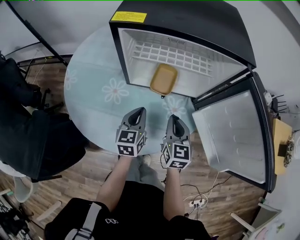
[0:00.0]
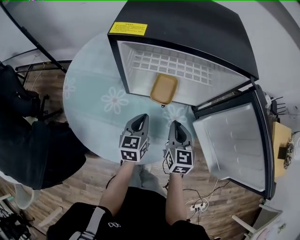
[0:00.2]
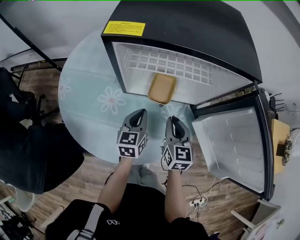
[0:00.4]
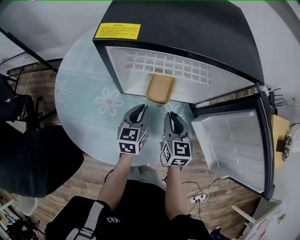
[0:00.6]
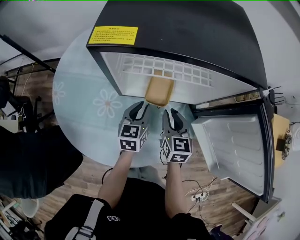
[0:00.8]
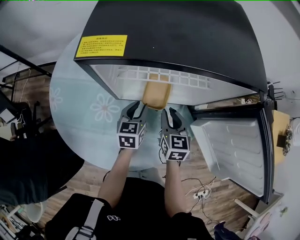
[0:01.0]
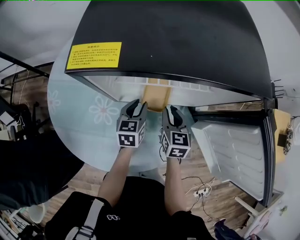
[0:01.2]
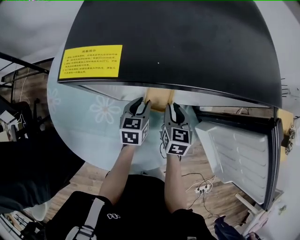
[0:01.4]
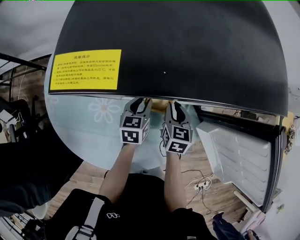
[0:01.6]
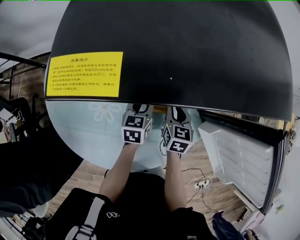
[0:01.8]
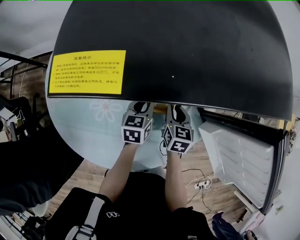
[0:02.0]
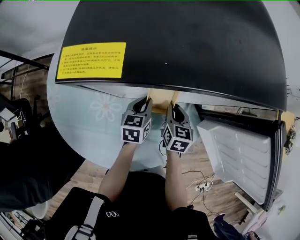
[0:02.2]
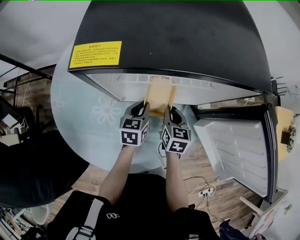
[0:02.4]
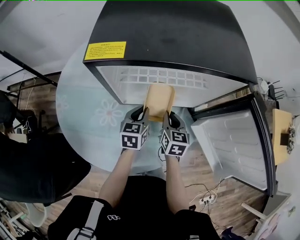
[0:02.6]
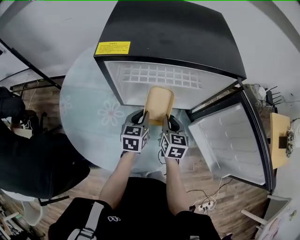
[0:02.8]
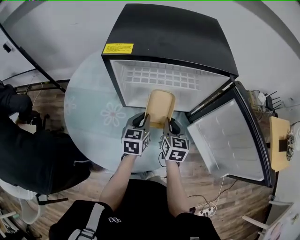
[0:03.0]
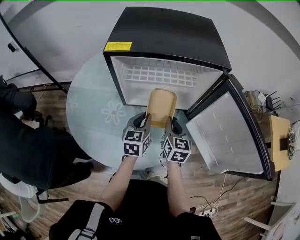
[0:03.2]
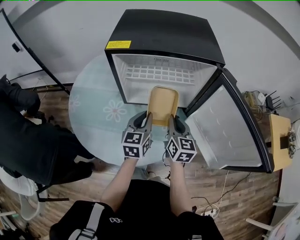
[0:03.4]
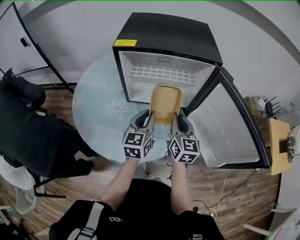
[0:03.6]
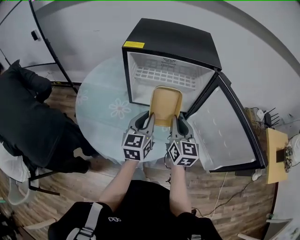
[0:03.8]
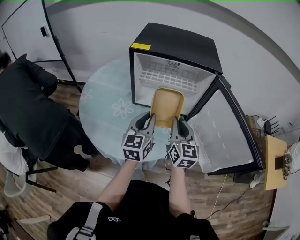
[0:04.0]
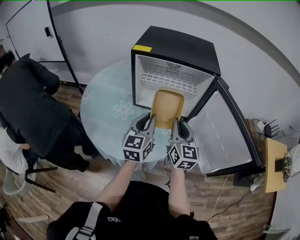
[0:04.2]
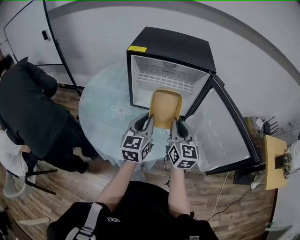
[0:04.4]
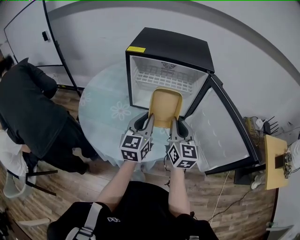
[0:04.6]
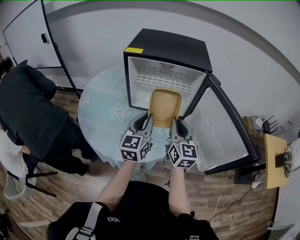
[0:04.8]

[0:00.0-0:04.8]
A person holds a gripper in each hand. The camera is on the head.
0:00.0 to 0:01.6: Both grippers move forward and downward, some 15 cm. The left gripper opens up; the right gripper opens its fingers.
0:01.6 to 0:03.2: Both grippers travel together upward and backward, some 15 cm. The left gripper closes up.
0:03.2 to 0:04.8: Both grippers move upward and backward, approximately 20 cm. The right gripper turns by some 20 degrees. Meanwhile the left gripper changes its angle by about 20 degrees.

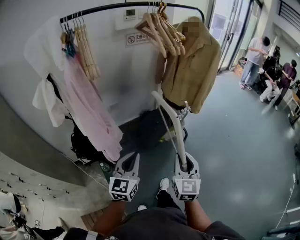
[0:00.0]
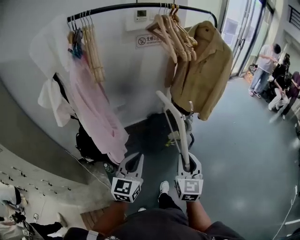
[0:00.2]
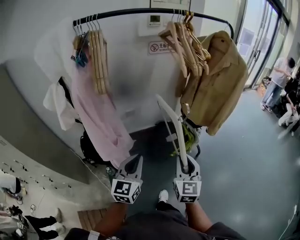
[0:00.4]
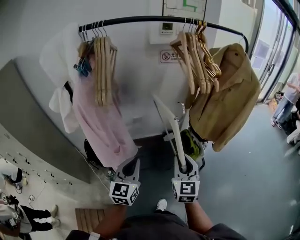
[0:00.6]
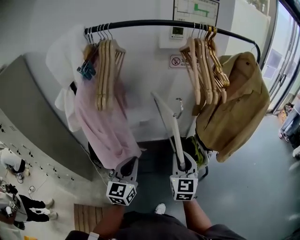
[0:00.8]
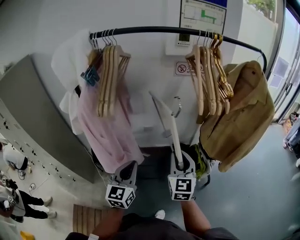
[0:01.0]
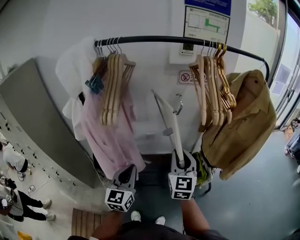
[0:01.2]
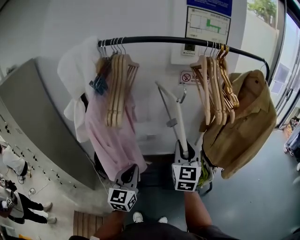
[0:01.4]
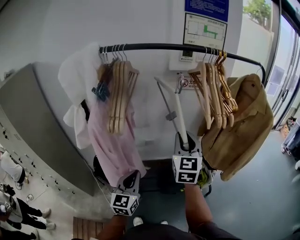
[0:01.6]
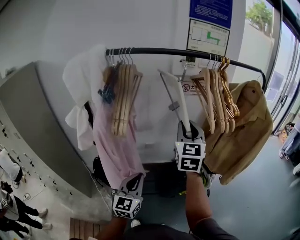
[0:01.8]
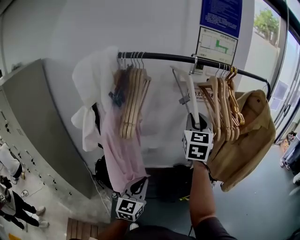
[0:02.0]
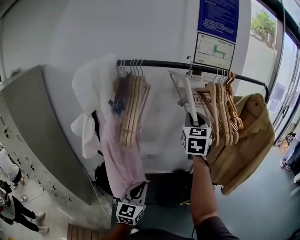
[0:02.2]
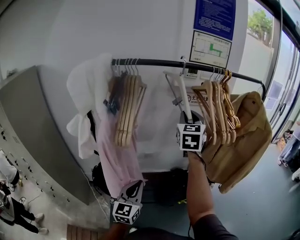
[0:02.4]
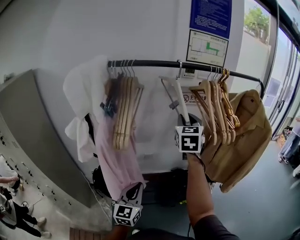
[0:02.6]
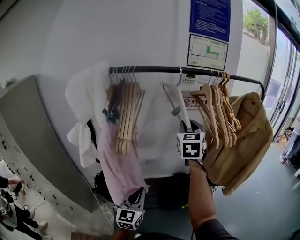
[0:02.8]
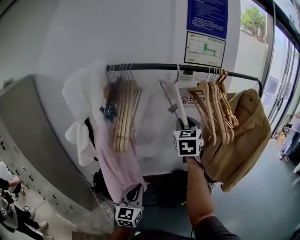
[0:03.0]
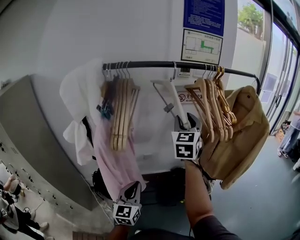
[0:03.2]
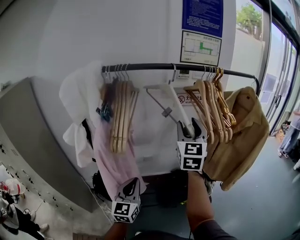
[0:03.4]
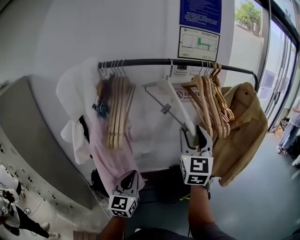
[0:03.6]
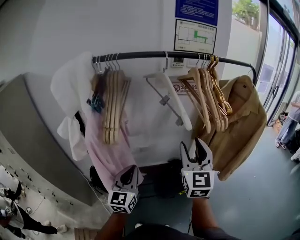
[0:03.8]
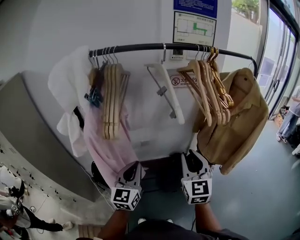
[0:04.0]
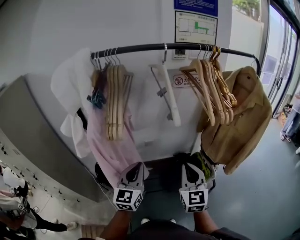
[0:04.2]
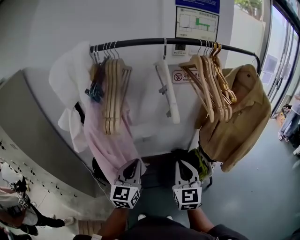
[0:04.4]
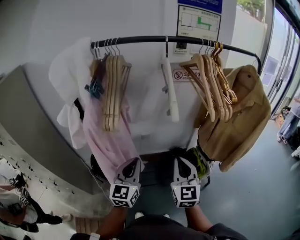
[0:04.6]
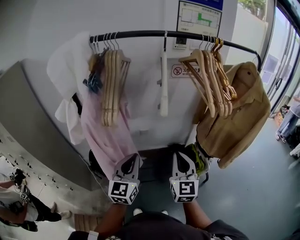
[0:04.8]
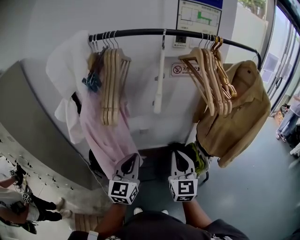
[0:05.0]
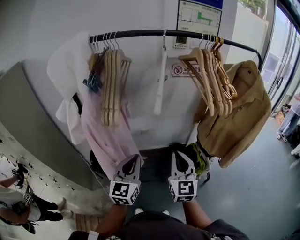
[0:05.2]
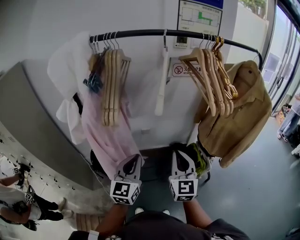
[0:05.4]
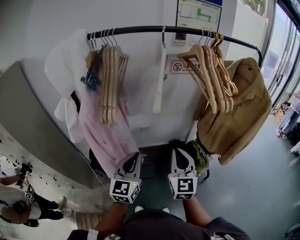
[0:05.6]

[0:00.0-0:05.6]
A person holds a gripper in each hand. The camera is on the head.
0:00.0 to 0:01.4: The right gripper shifts by roughly 35 cm, and turns by about 20 degrees, while the left gripper ends up roughly 20 cm from where it was, and rotates roughly 30 degrees.
0:01.4 to 0:02.8: The right gripper shifts roughly 20 cm forward and upward.
0:02.8 to 0:04.2: The left gripper shifts by roughly 5 cm. The right gripper moves backward and downward, about 25 cm, and opens and closes again.
0:04.2 to 0:05.6: There are only small adjustments of the grippers.

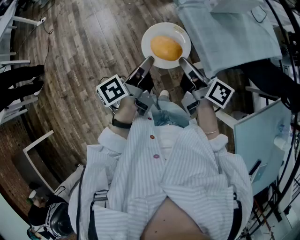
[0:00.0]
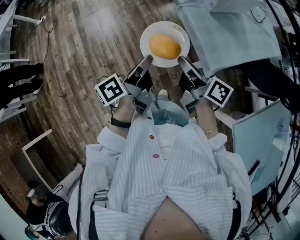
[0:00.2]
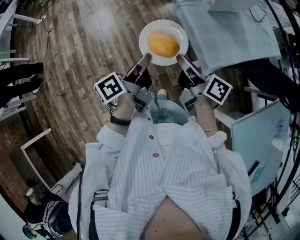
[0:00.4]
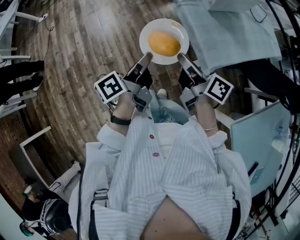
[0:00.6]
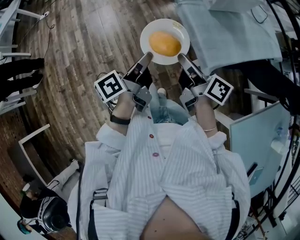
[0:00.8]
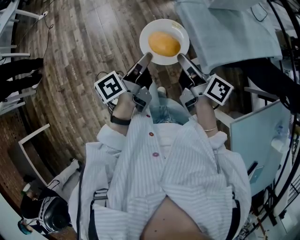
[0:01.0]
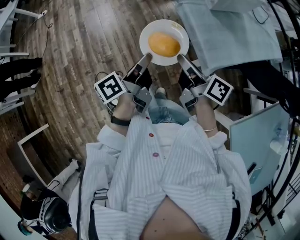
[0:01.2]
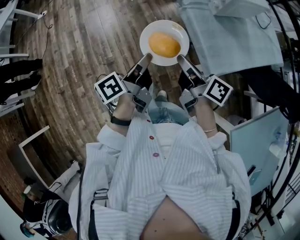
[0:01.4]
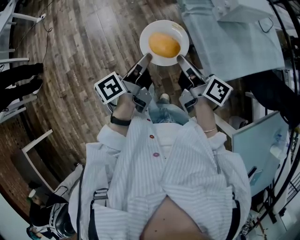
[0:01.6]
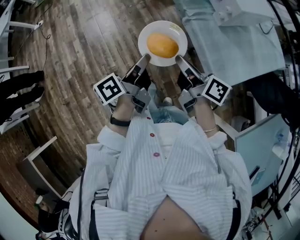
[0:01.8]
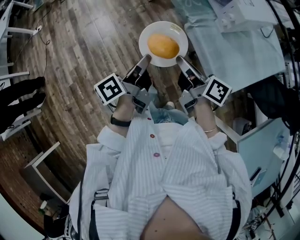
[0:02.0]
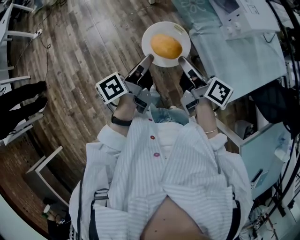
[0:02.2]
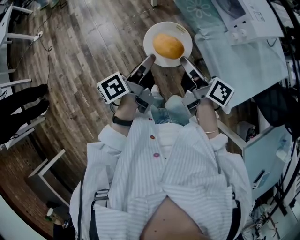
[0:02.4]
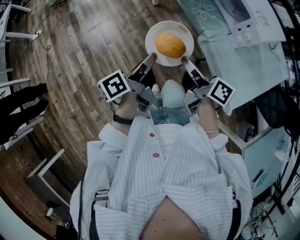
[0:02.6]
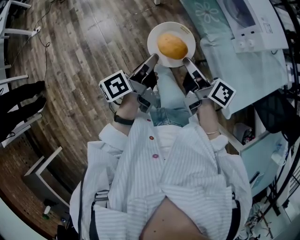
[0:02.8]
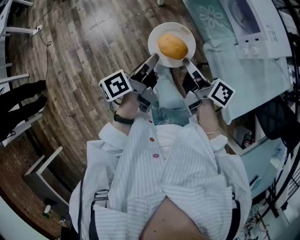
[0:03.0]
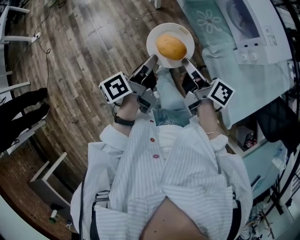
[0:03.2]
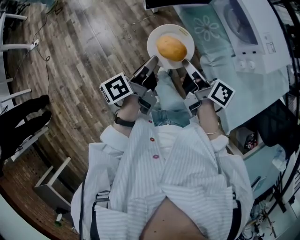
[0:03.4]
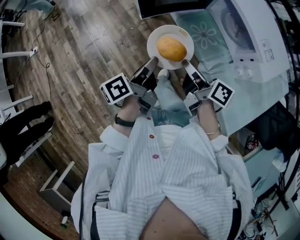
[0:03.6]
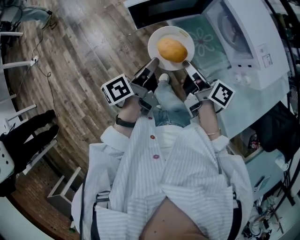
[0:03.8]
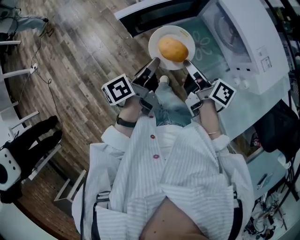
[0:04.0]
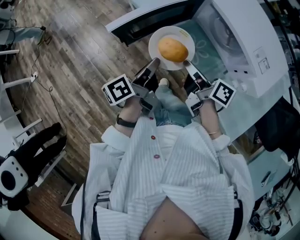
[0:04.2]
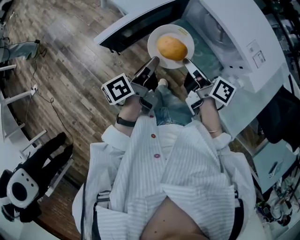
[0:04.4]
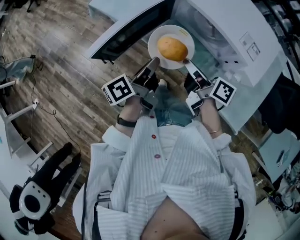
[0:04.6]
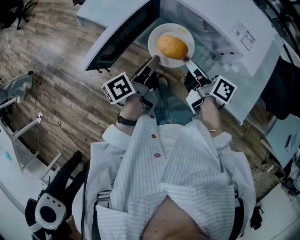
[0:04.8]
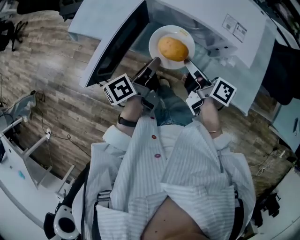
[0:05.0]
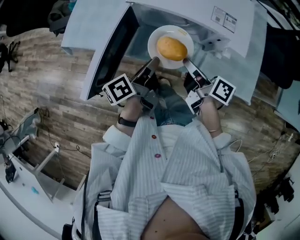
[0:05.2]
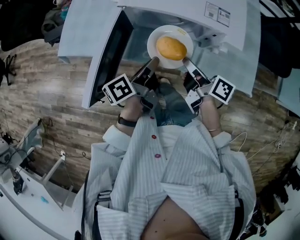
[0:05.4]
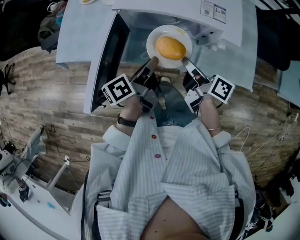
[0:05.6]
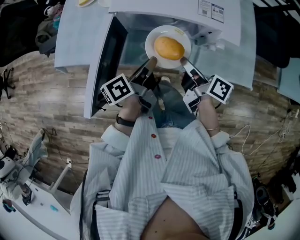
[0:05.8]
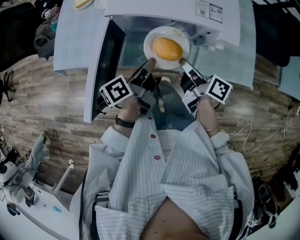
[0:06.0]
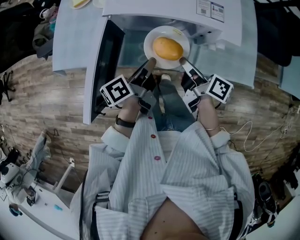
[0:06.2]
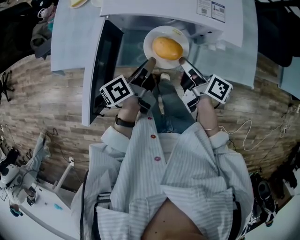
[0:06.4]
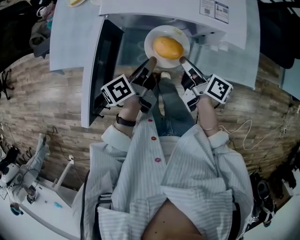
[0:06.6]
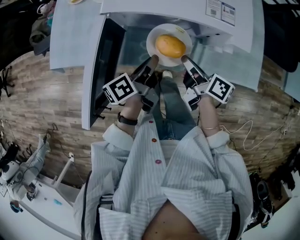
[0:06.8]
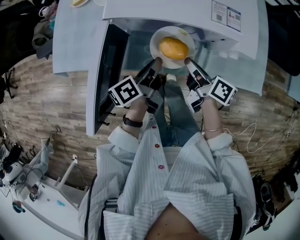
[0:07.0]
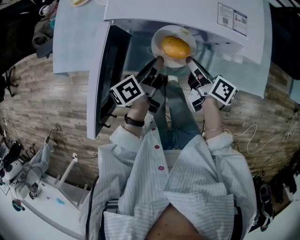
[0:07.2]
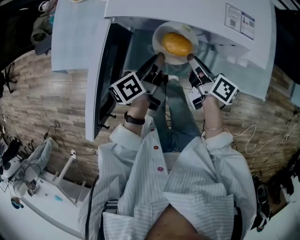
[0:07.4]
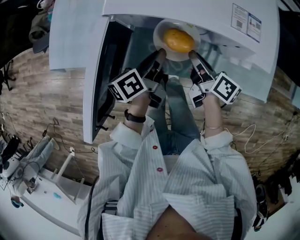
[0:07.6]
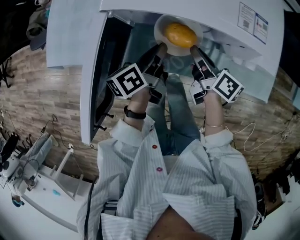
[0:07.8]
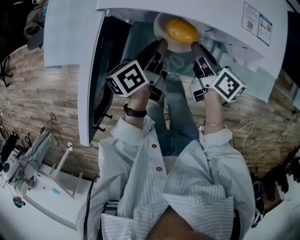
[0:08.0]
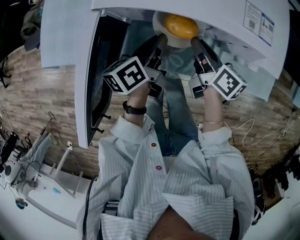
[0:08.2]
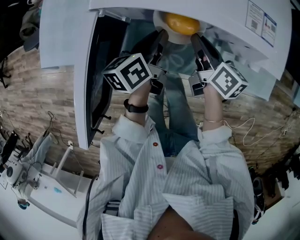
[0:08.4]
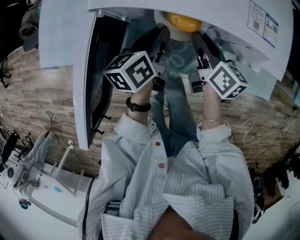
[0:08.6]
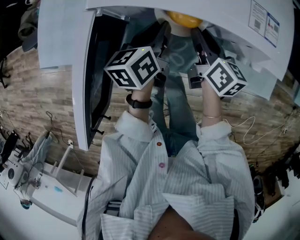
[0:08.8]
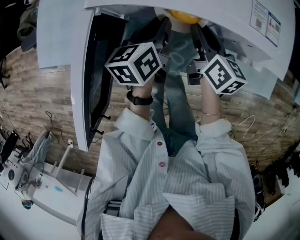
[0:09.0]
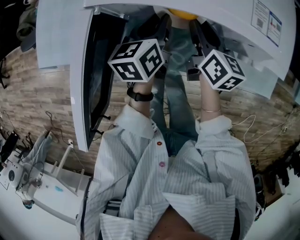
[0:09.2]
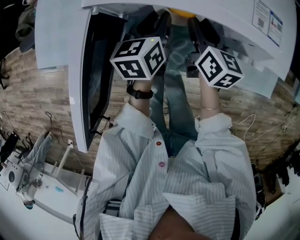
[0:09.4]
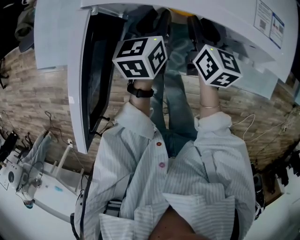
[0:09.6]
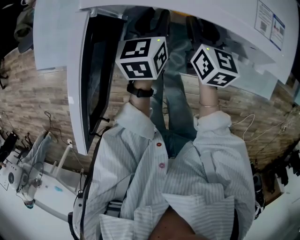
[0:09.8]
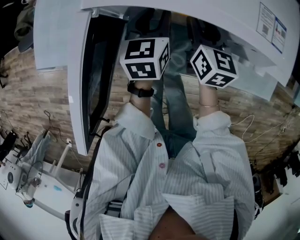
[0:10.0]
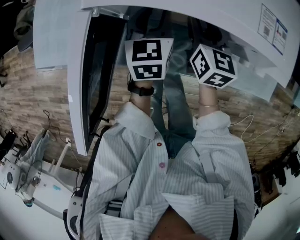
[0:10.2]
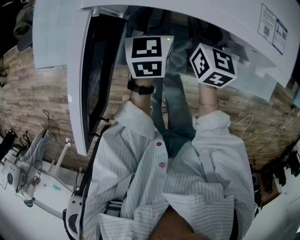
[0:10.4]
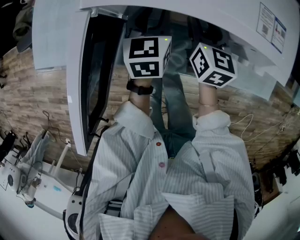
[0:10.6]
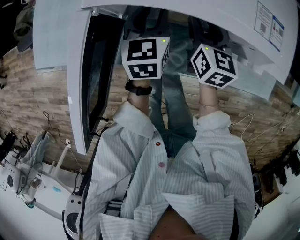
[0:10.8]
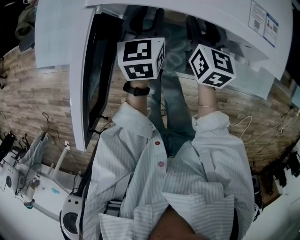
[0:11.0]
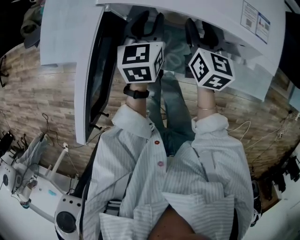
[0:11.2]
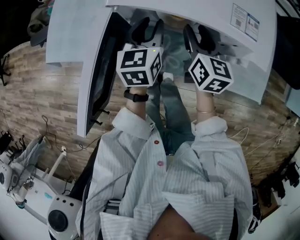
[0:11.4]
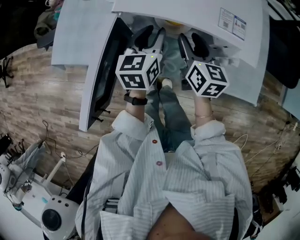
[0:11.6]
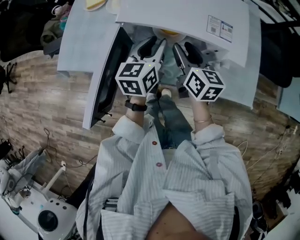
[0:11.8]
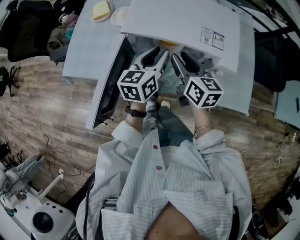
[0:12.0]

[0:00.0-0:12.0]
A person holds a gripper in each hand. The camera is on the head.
0:00.0 to 0:01.6: Both grippers move forward, some 5 cm.
0:01.6 to 0:03.0: The grippers both shift forward and to the left by approximately 25 cm.
0:03.0 to 0:04.4: Both grippers travel together forward and to the right, roughly 30 cm. The right gripper rotates approximately 20 degrees; the left gripper rotates approximately 20 degrees.
0:04.4 to 0:06.0: The left gripper changes place by approximately 15 cm, and turns by some 40 degrees; the right gripper ends up approximately 10 cm from where it was, and rotates roughly 40 degrees.
0:06.0 to 0:07.6: The grippers both shift downward and forward by approximately 10 cm.
0:07.6 to 0:09.0: Both grippers travel together forward, some 5 cm. The right gripper turns by about 30 degrees. Meanwhile the left gripper changes its angle by roughly 30 degrees.
0:09.0 to 0:10.4: The right gripper changes its angle by some 20 degrees. Meanwhile the left gripper swivels approximately 30 degrees.
0:10.4 to 0:12.0: The two grippers go approximately 15 cm upward and backward. The left gripper changes its angle by about 20 degrees. Meanwhile the right gripper swivels about 20 degrees.

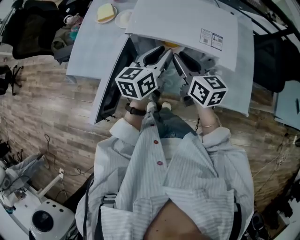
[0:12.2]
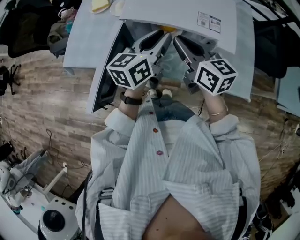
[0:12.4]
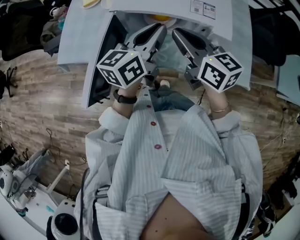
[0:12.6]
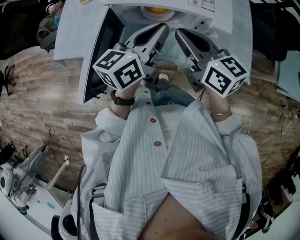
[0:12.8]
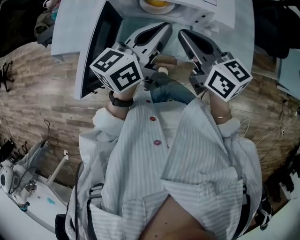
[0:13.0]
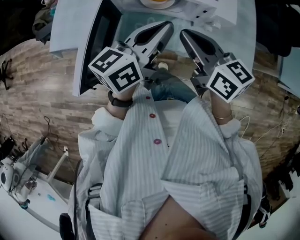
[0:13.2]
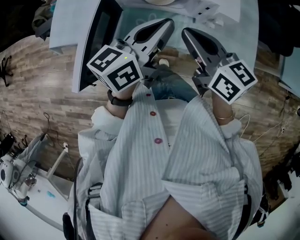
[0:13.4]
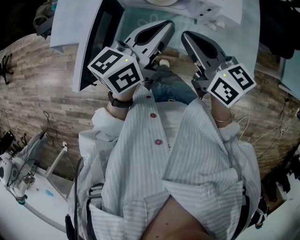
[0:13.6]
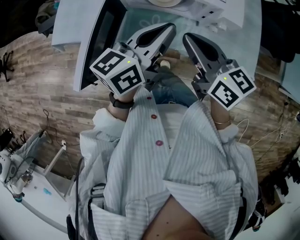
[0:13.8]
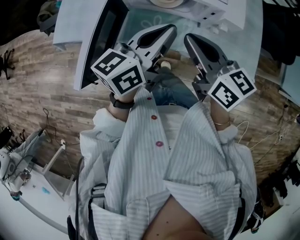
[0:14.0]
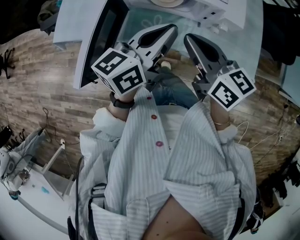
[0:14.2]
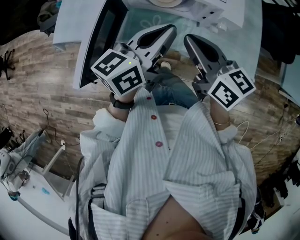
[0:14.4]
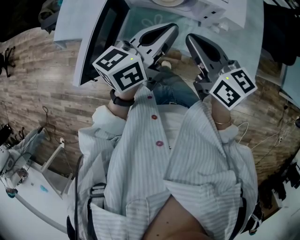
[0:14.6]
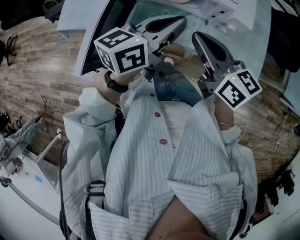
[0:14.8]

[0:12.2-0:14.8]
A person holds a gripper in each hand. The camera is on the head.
0:12.2 to 0:13.4: Both grippers move backward, roughly 10 cm. The right gripper closes its fingers. The left gripper closes its fingers.
0:13.4 to 0:14.8: The grippers stay close to where they were, moving slightly.
